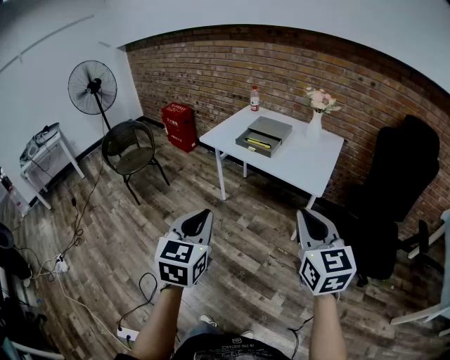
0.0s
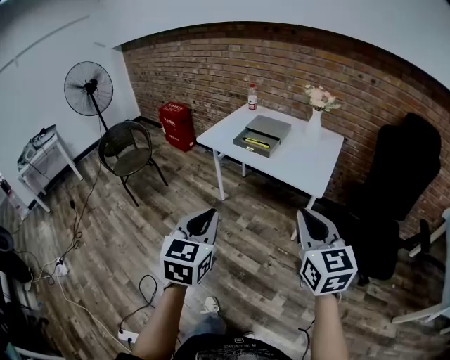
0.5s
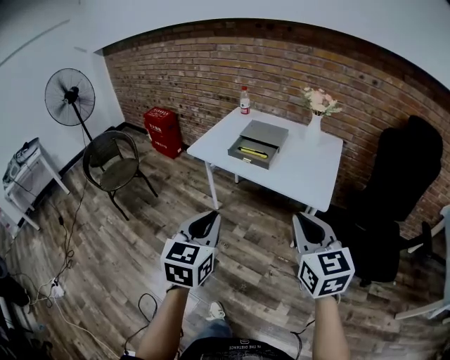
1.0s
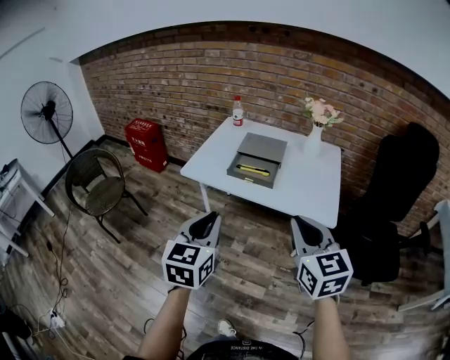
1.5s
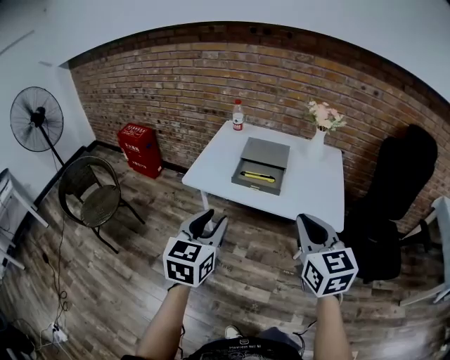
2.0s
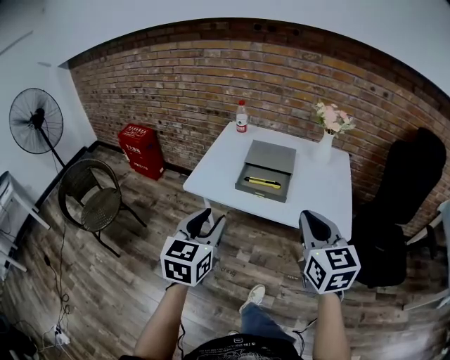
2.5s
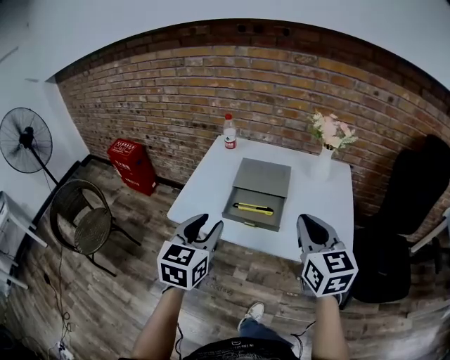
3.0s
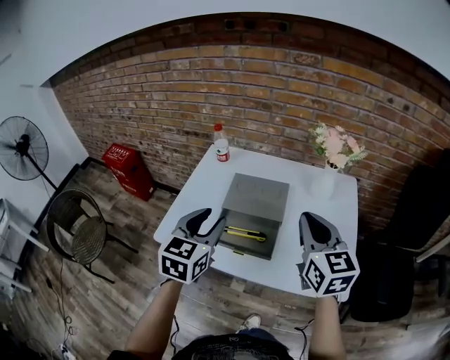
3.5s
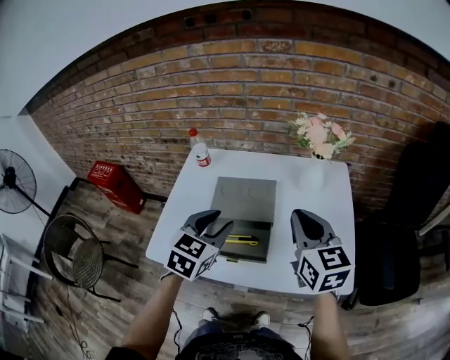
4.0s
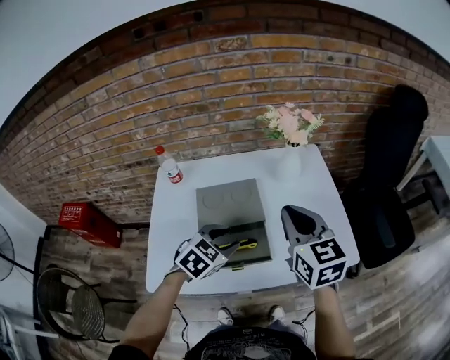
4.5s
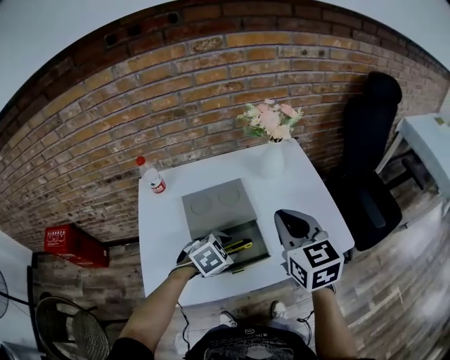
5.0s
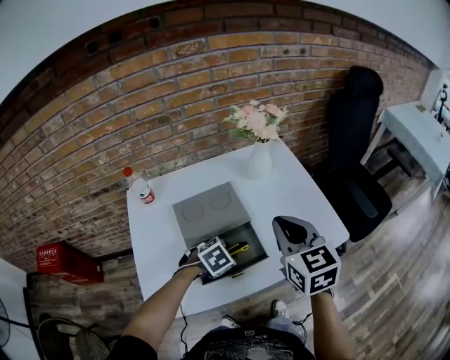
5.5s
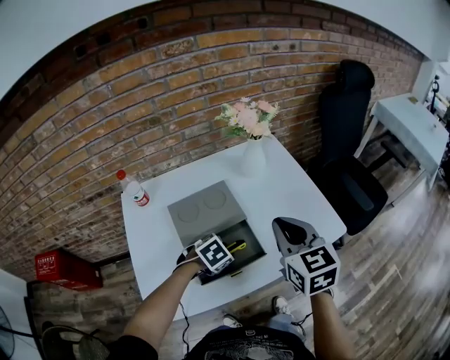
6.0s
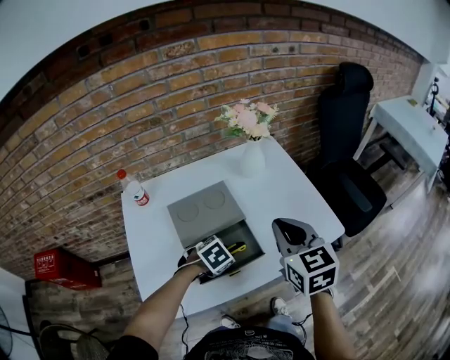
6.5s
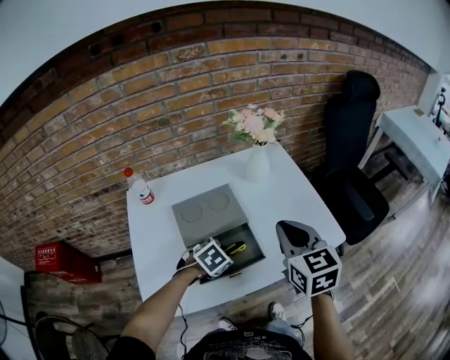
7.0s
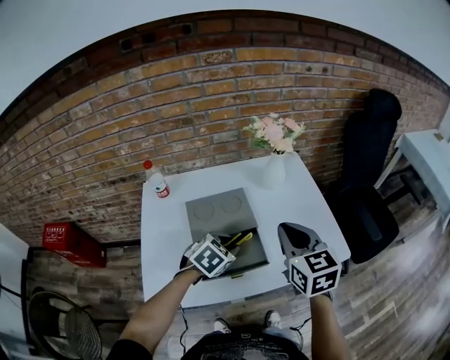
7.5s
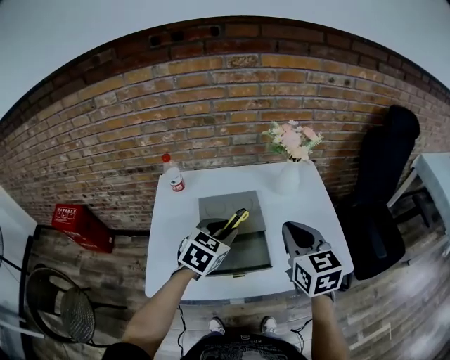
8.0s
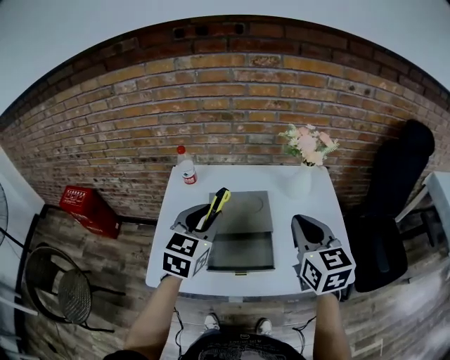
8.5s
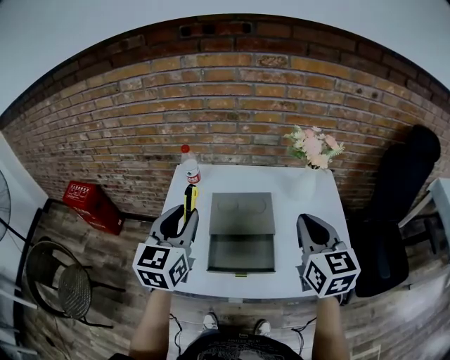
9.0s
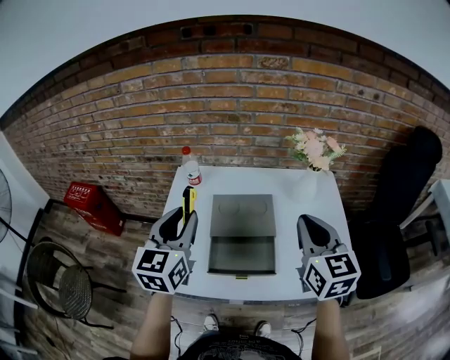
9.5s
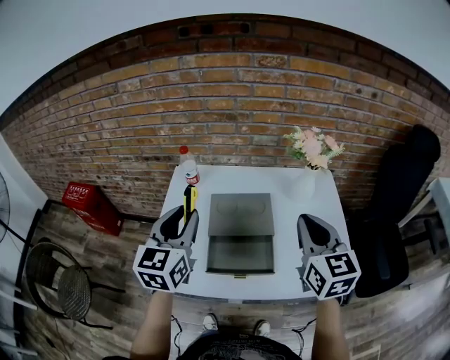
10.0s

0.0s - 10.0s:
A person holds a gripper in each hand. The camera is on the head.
0.0s - 2.0s: The right gripper is displaced forward and to the left by about 30 cm. Meanwhile the left gripper travels forward by about 30 cm, swivels about 20 degrees, and opens its fingers.
2.0s - 4.0s: Both grippers travel together forward, some 35 cm. The left gripper turns by some 30 degrees.
4.0s - 6.0s: The left gripper moves downward, about 20 cm, and tilts its fingers some 40 degrees downward. The right gripper changes place by some 5 cm, and rotates roughly 30 degrees.
6.0s - 8.0s: The left gripper is displaced upward by roughly 15 cm, and points its fingers roughly 30 degrees further upward.
8.0s - 10.0s: The left gripper goes about 15 cm to the left and upward, and turns by some 40 degrees.

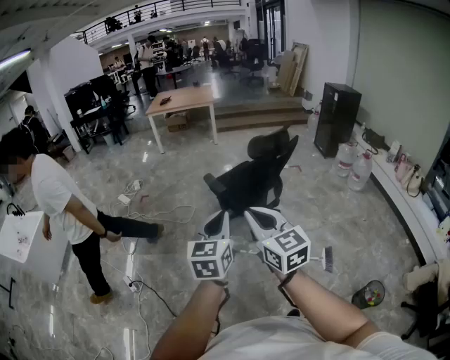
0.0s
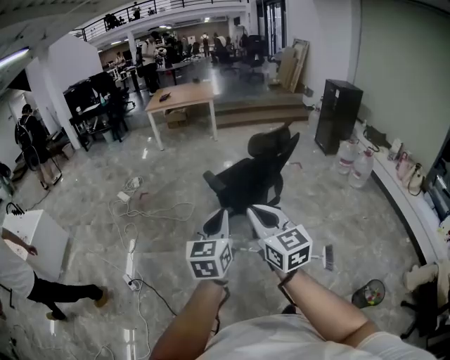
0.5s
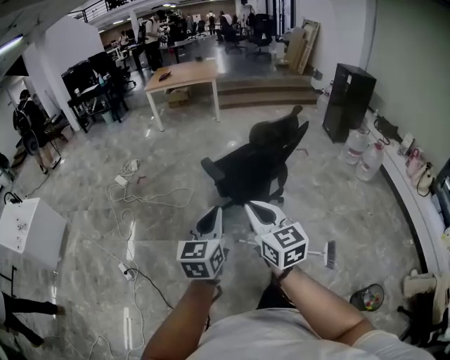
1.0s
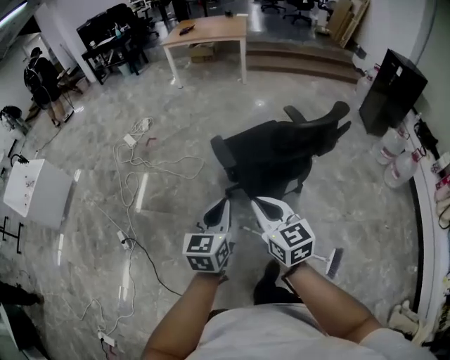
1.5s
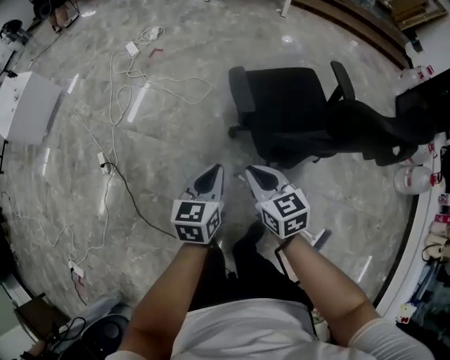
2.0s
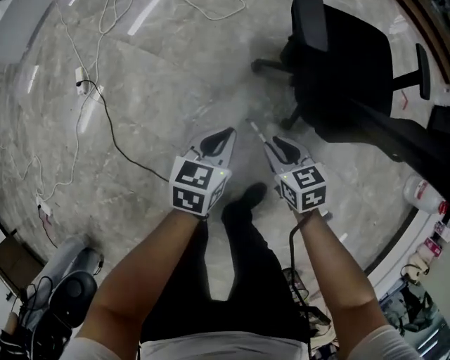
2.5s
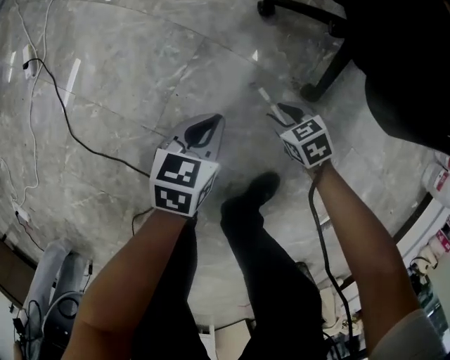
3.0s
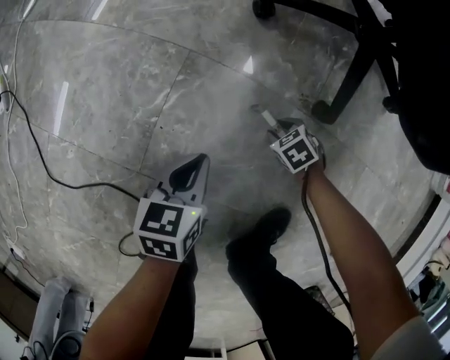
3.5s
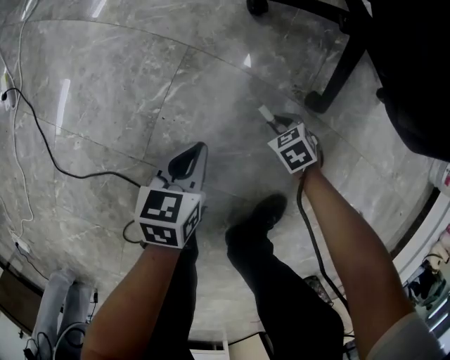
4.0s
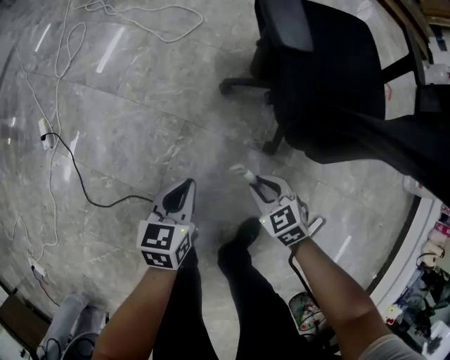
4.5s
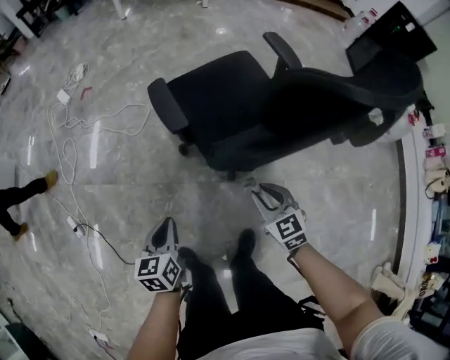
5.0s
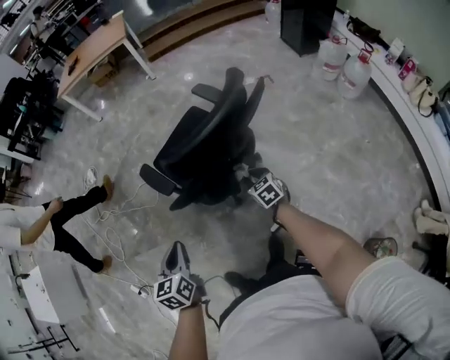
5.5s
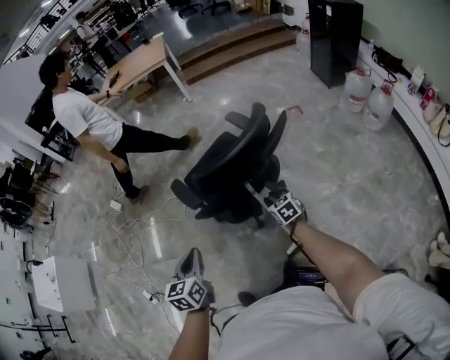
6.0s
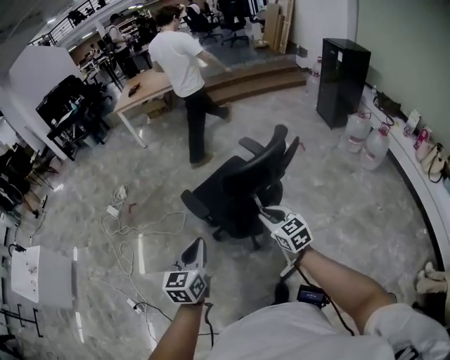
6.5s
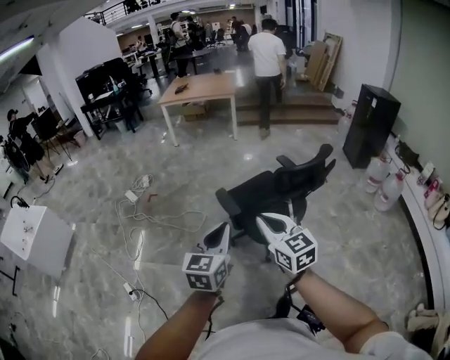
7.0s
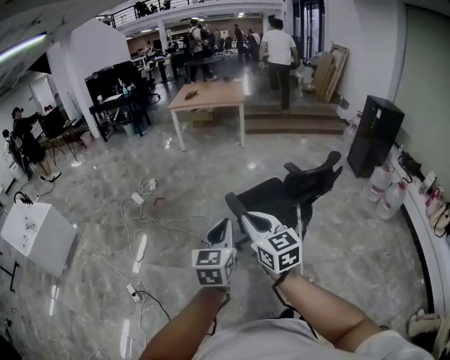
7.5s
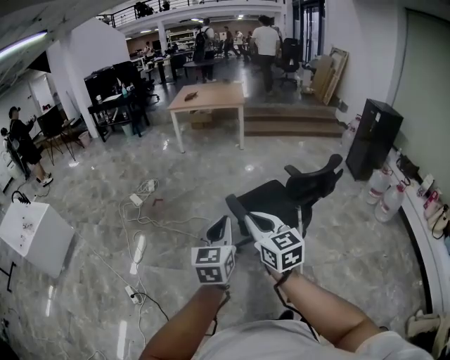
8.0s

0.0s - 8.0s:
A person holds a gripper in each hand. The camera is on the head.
0.0s - 2.0s: The two grippers travel together, forward, roughly 50 cm. Both grippers move downward, some 40 cm. The left gripper rotates about 30 degrees; the right gripper swivels about 40 degrees.
2.0s - 4.0s: Both grippers move downward, some 90 cm. The left gripper turns by roughly 20 degrees. The right gripper angles its fingers downward, by some 50 degrees, and opens up.
4.0s - 6.0s: Both grippers travel together upward, roughly 90 cm. The right gripper tilts its fingers about 30 degrees upward. The left gripper turns by about 30 degrees.
6.0s - 8.0s: The left gripper travels to the left and upward by some 35 cm, and changes its angle by about 20 degrees. The right gripper shifts about 60 cm to the left and upward, tilts its fingers roughly 30 degrees upward, and closes.

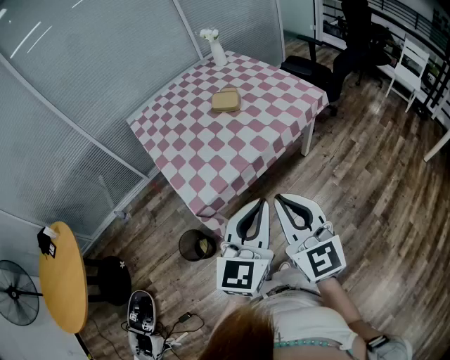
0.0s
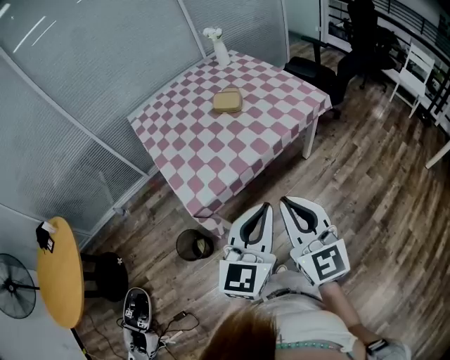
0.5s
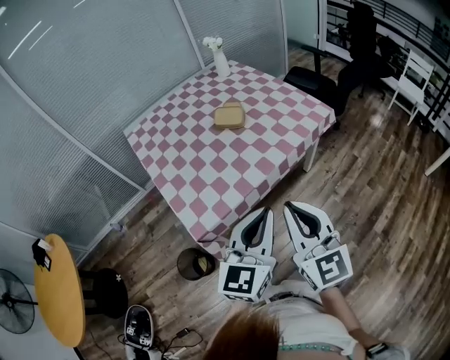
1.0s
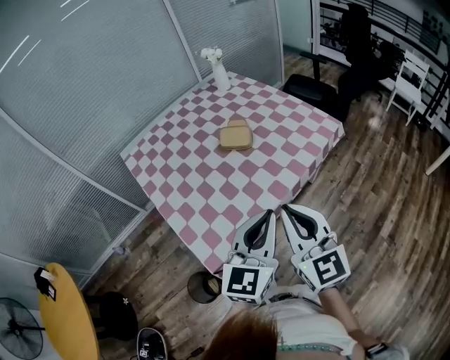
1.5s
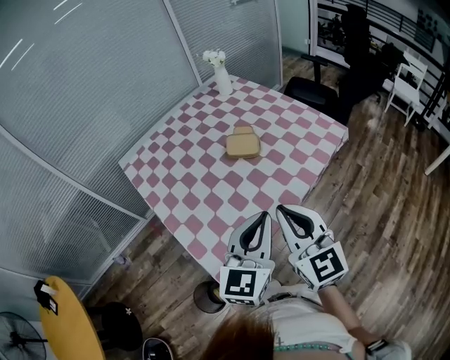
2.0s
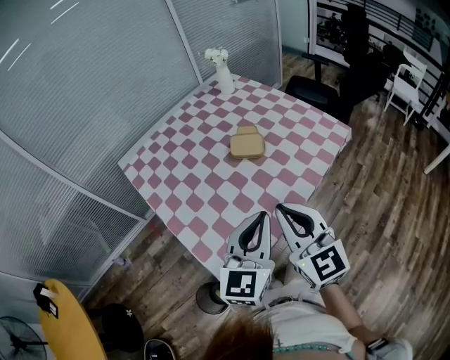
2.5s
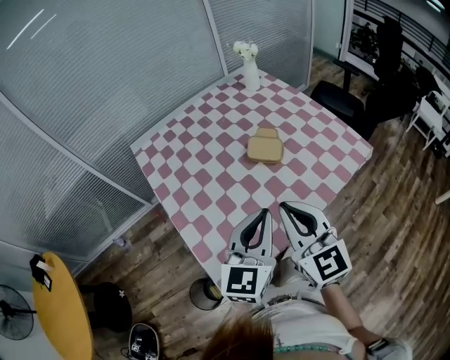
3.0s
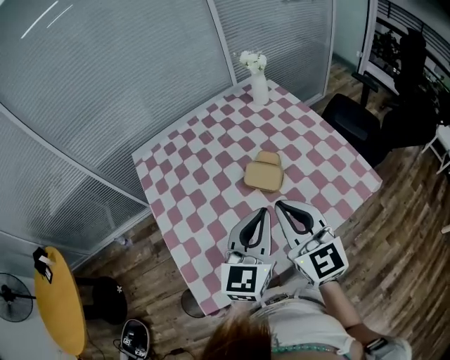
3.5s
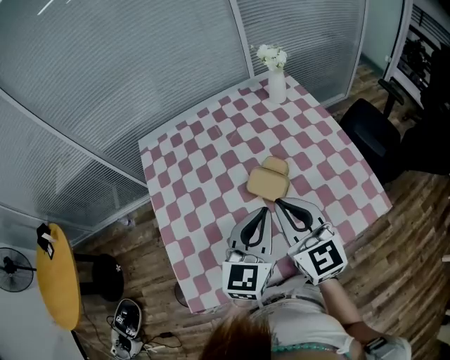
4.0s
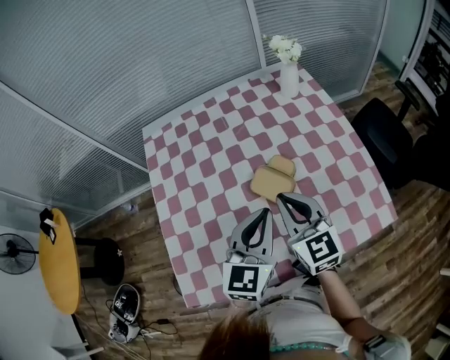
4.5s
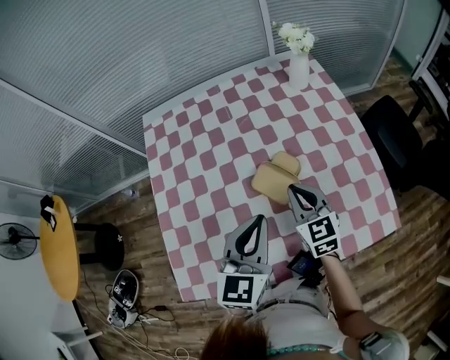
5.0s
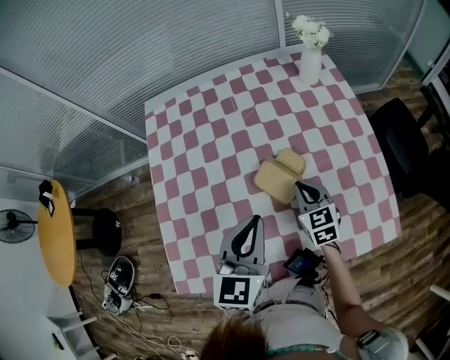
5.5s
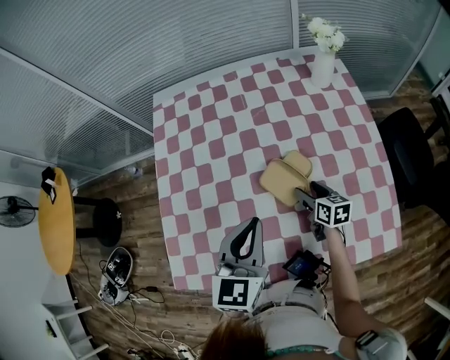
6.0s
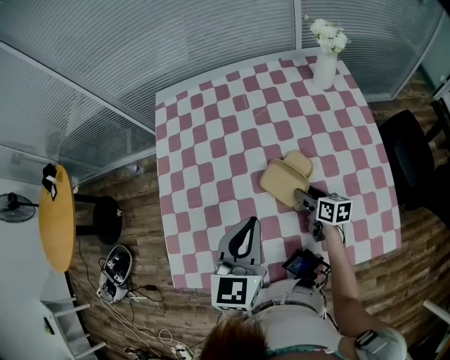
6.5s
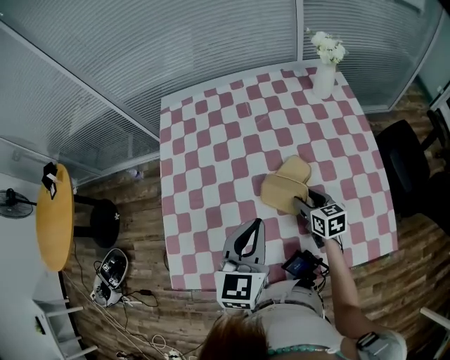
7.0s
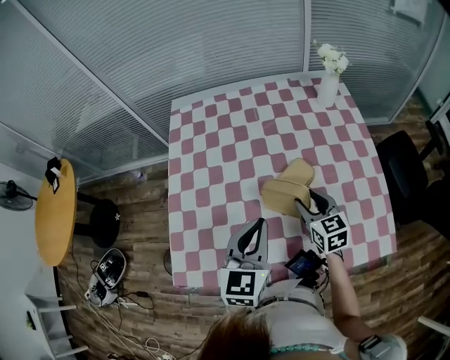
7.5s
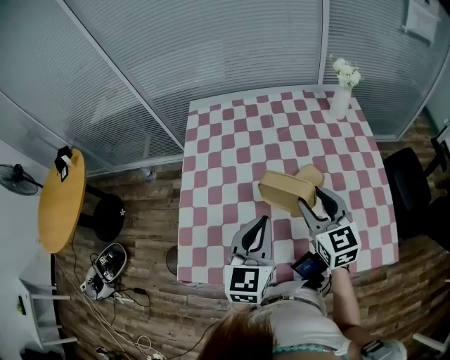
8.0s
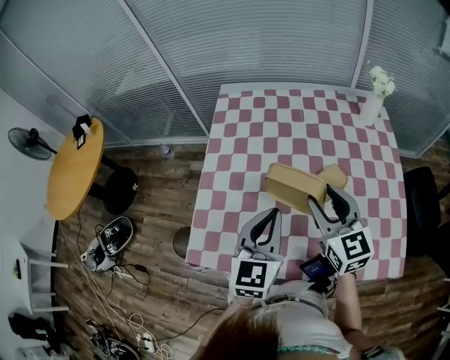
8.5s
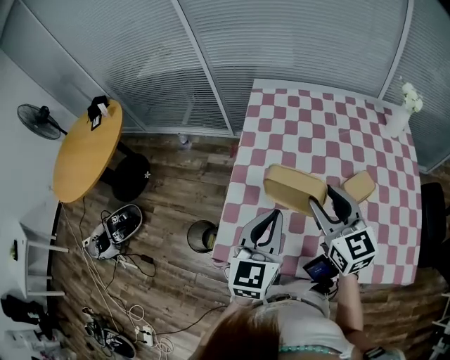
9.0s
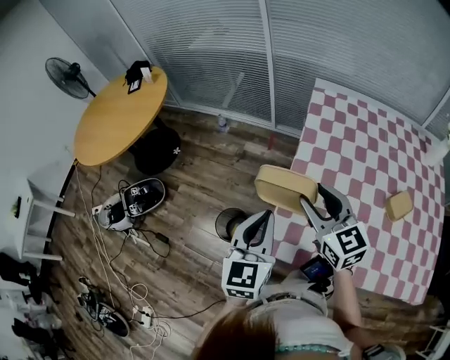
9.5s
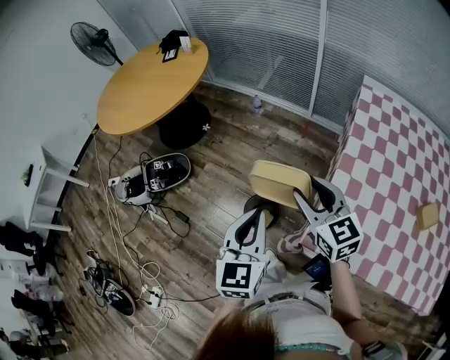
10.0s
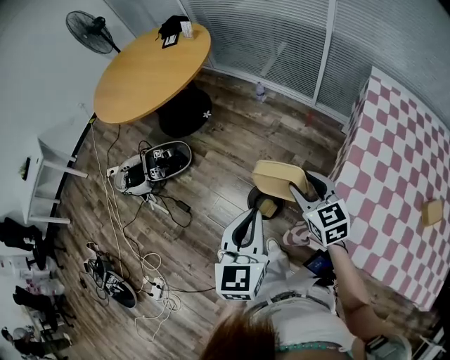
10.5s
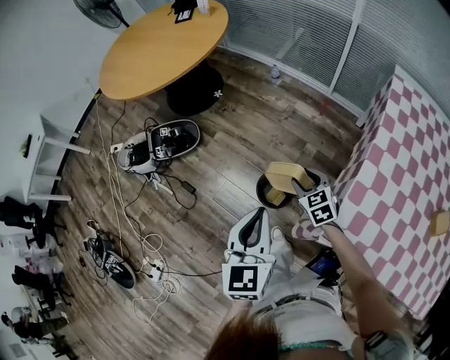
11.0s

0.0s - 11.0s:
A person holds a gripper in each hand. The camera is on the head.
0.0s - 2.0s: The two grippers go about 30 cm forward and to the left.
2.0s - 3.5s: Both grippers move forward, about 20 cm.
3.5s - 5.5s: The right gripper goes about 30 cm downward and forward, and points its fingers approximately 30 degrees further downward; the left gripper is displaced forward and downward by roughly 15 cm, and changes its angle by roughly 30 degrees.
5.5s - 7.5s: The right gripper travels downward and back again, some 10 cm each way, and opens up. Meanwhile the left gripper moves about 5 cm.
7.5s - 9.0s: The left gripper travels to the left by some 20 cm, while the right gripper goes roughly 30 cm to the left and upward, and turns by approximately 30 degrees.
9.0s - 11.0s: Both grippers are carried about 50 cm. The left gripper changes its angle by some 40 degrees. The right gripper tilts its fingers approximately 30 degrees downward.
